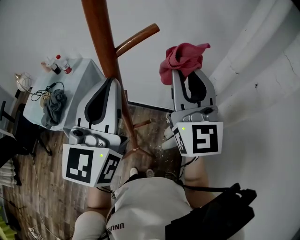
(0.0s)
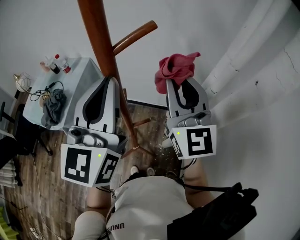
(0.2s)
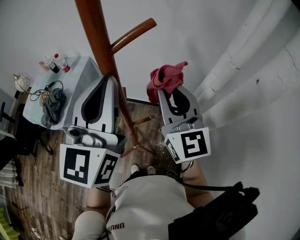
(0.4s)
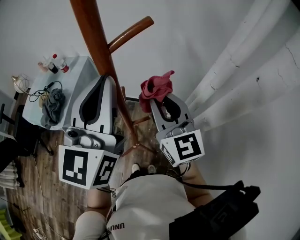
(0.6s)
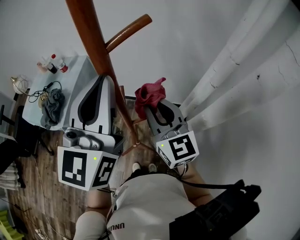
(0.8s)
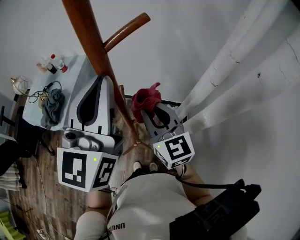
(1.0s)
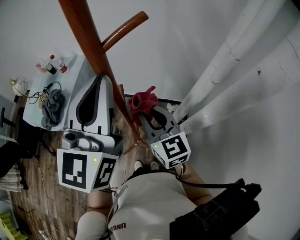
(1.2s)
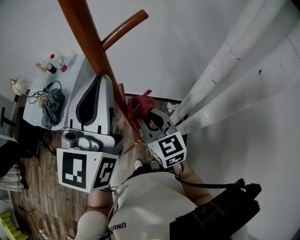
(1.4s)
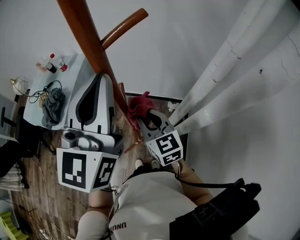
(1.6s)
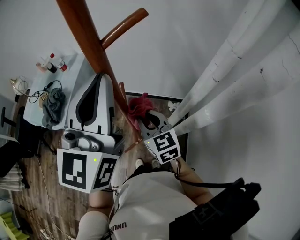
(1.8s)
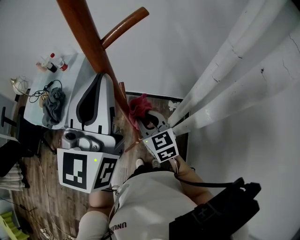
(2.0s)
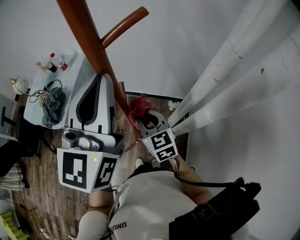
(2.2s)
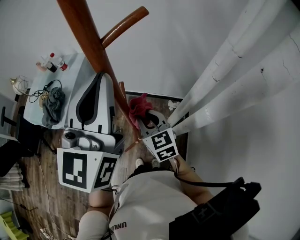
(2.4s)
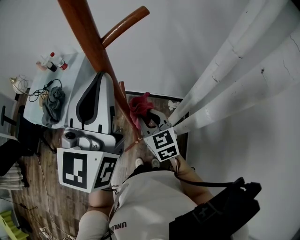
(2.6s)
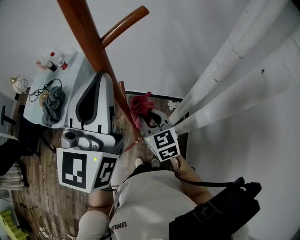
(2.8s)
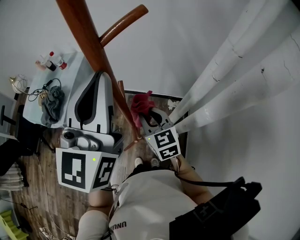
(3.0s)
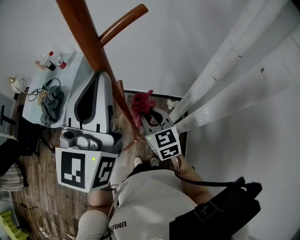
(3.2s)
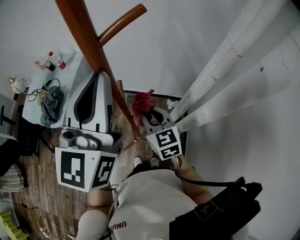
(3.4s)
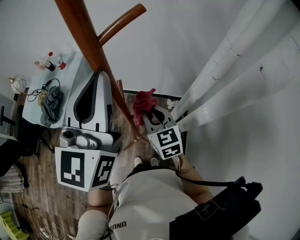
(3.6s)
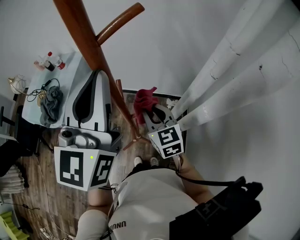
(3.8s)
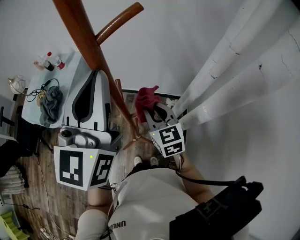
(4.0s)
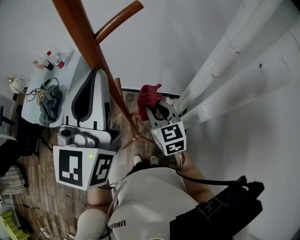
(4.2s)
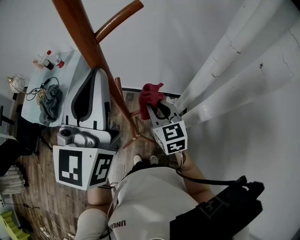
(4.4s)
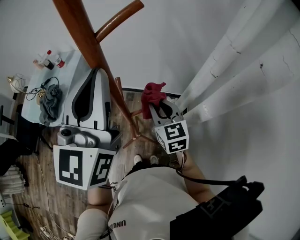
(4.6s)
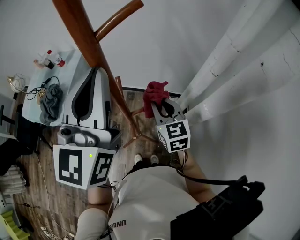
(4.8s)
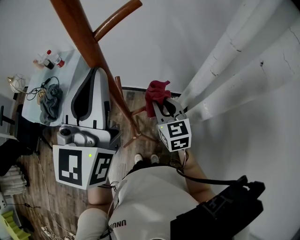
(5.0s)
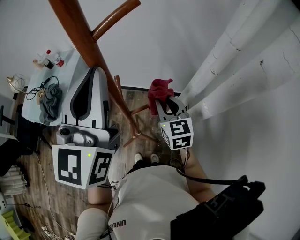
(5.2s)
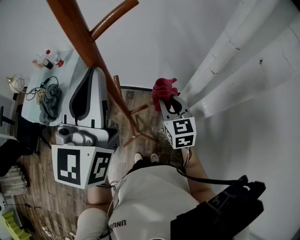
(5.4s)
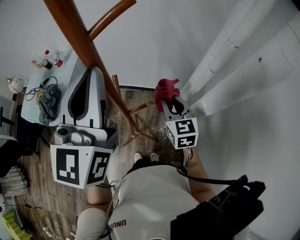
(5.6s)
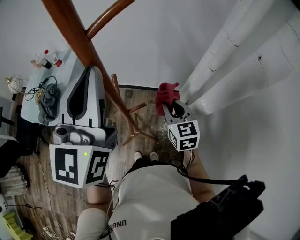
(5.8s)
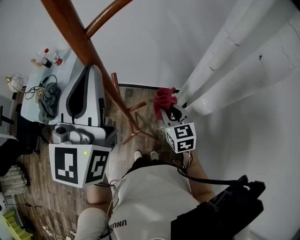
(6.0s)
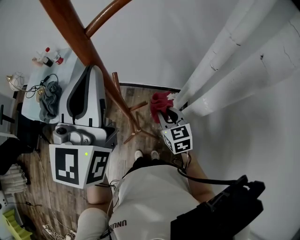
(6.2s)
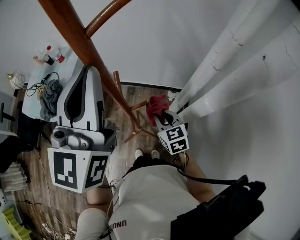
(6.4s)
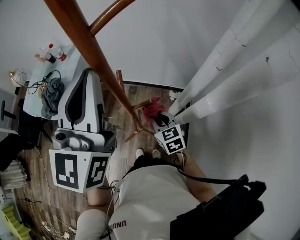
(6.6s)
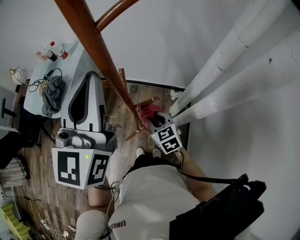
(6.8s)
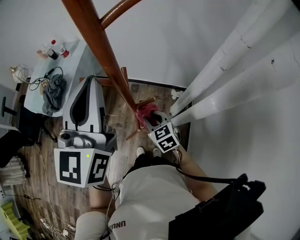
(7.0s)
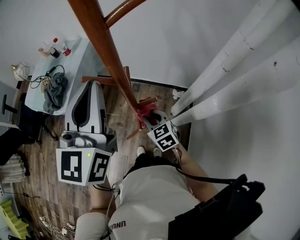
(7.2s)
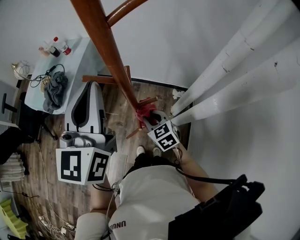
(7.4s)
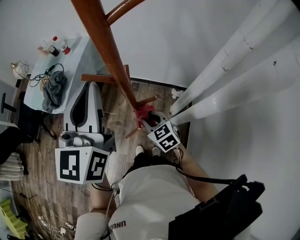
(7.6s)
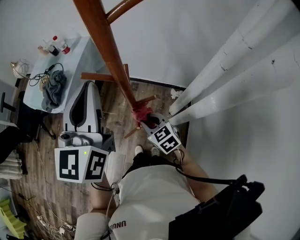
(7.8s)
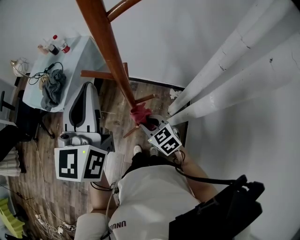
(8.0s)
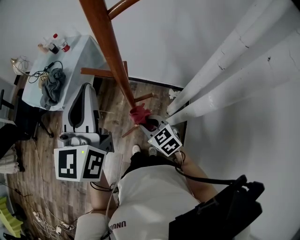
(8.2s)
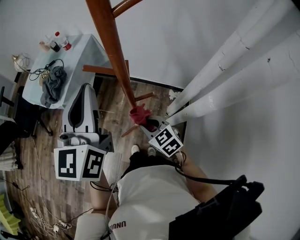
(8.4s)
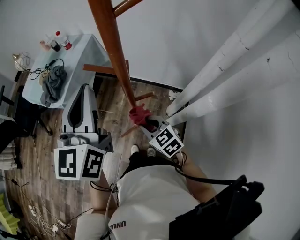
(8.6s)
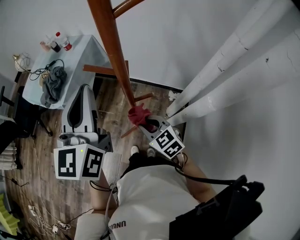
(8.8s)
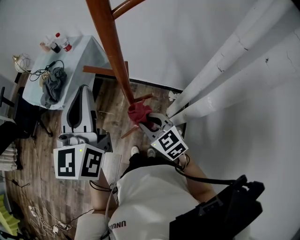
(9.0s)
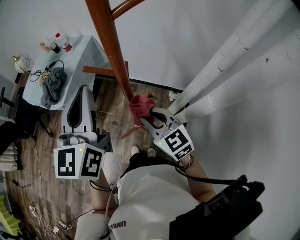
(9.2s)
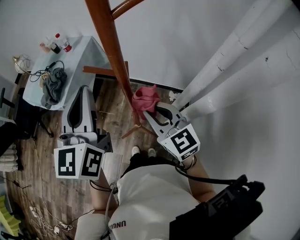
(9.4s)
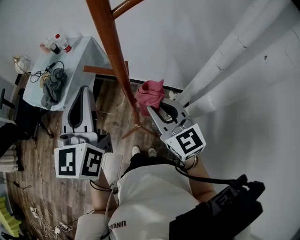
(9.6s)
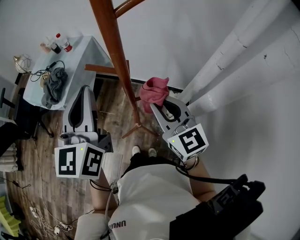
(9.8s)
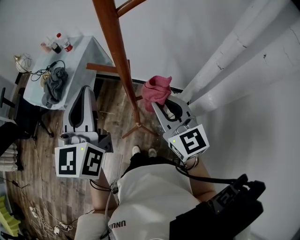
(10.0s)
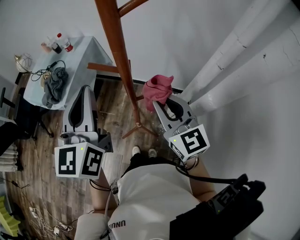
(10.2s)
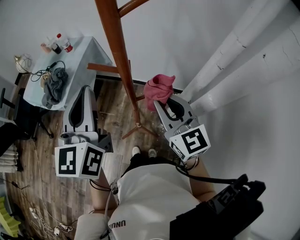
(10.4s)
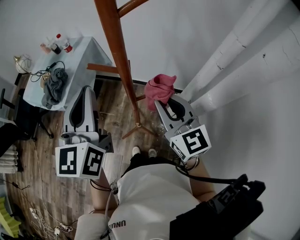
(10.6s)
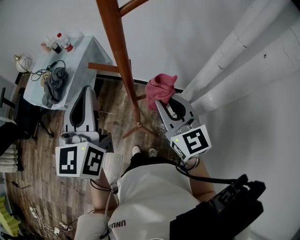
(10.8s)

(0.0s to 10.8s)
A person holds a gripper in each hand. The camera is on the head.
0.0s - 1.6s: The right gripper travels downward by approximately 25 cm, and points its fingers approximately 30 degrees further downward.
1.6s - 3.0s: There are only small adjustments of the grippers.
3.0s - 4.6s: The right gripper shifts roughly 5 cm to the right.
4.6s - 6.2s: The right gripper is displaced downward by roughly 10 cm.
6.2s - 7.8s: The right gripper moves to the left and downward, roughly 15 cm, and swivels approximately 30 degrees; the left gripper heads to the left and downward, covering some 10 cm.
7.8s - 9.2s: The right gripper travels upward by roughly 15 cm.
9.2s - 10.8s: The right gripper is displaced upward by approximately 10 cm, and swivels roughly 20 degrees.

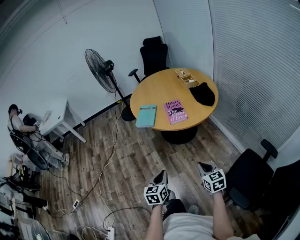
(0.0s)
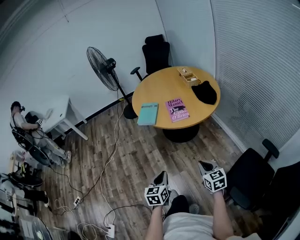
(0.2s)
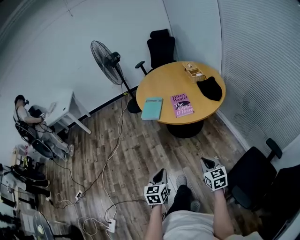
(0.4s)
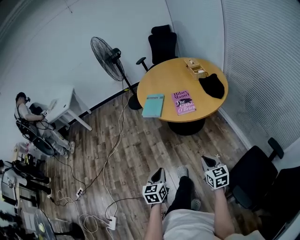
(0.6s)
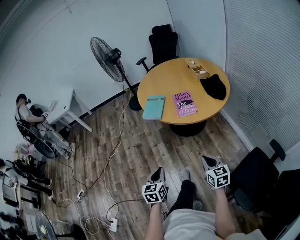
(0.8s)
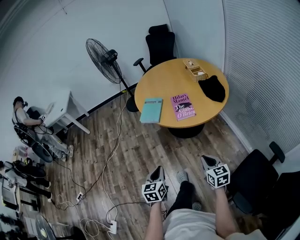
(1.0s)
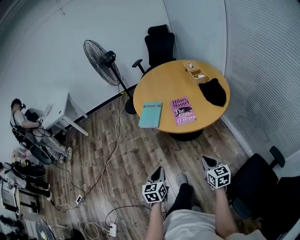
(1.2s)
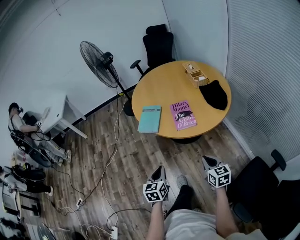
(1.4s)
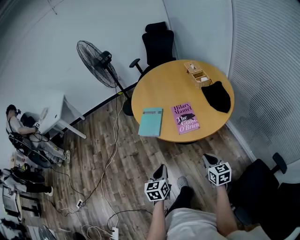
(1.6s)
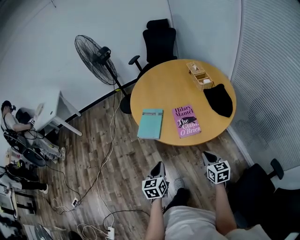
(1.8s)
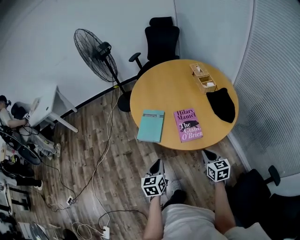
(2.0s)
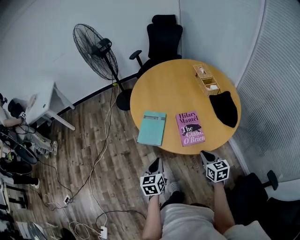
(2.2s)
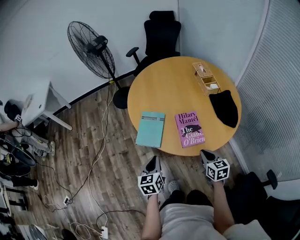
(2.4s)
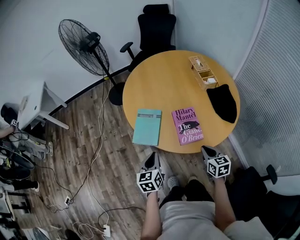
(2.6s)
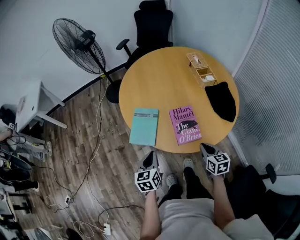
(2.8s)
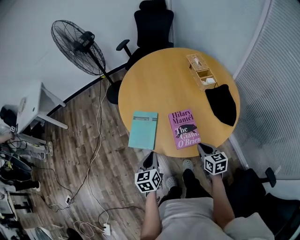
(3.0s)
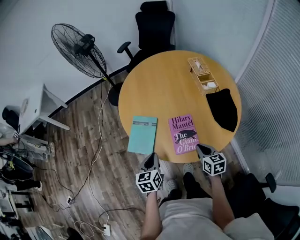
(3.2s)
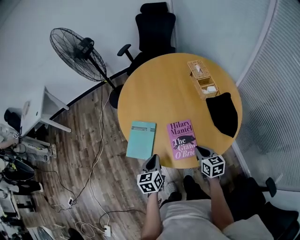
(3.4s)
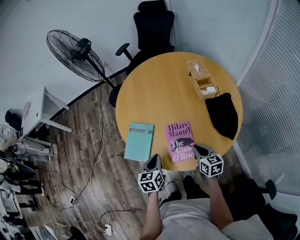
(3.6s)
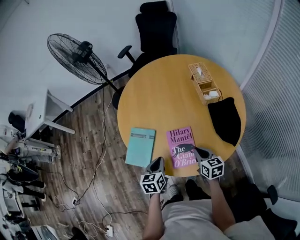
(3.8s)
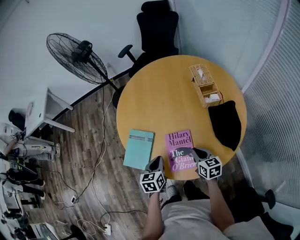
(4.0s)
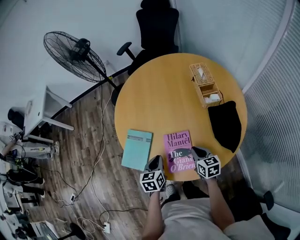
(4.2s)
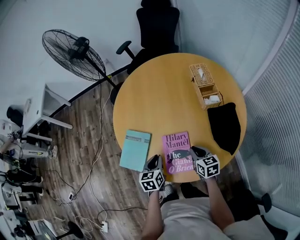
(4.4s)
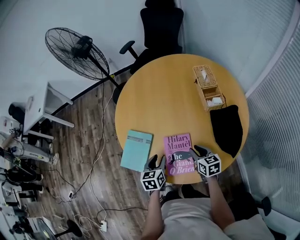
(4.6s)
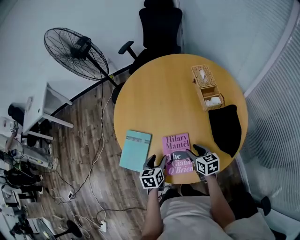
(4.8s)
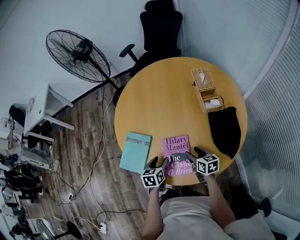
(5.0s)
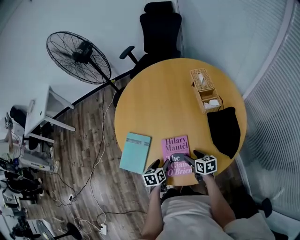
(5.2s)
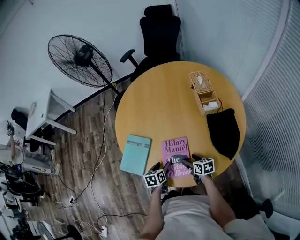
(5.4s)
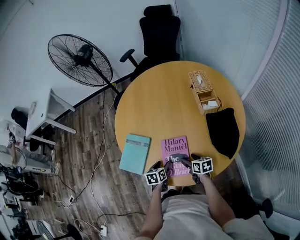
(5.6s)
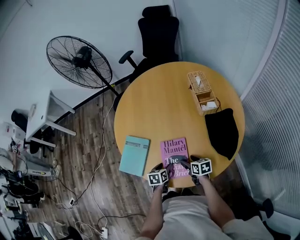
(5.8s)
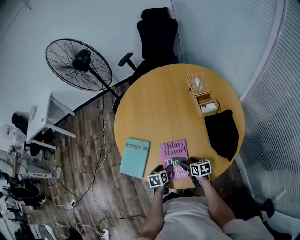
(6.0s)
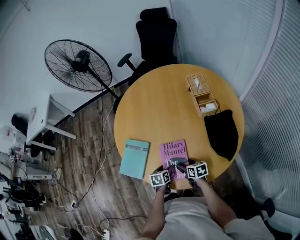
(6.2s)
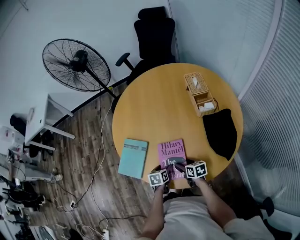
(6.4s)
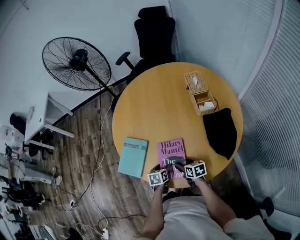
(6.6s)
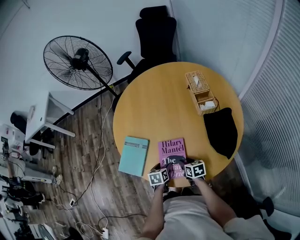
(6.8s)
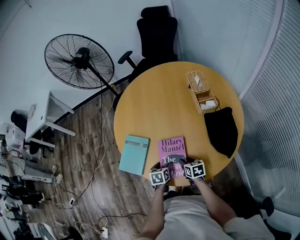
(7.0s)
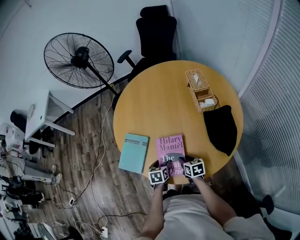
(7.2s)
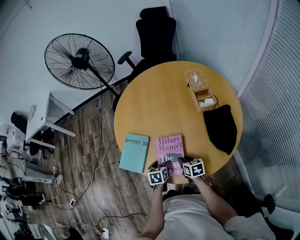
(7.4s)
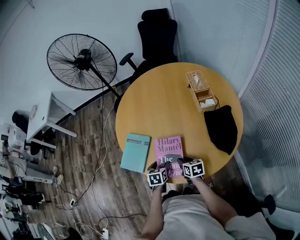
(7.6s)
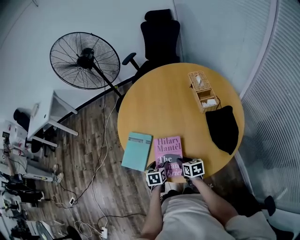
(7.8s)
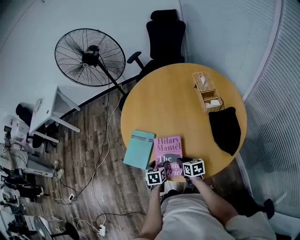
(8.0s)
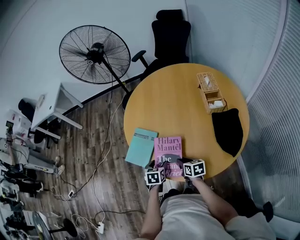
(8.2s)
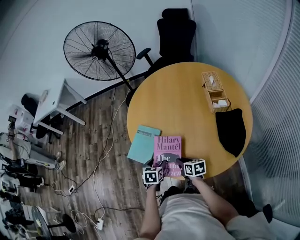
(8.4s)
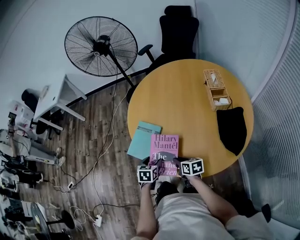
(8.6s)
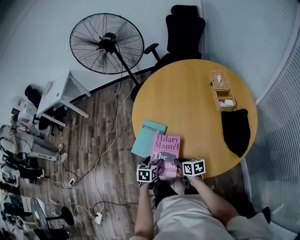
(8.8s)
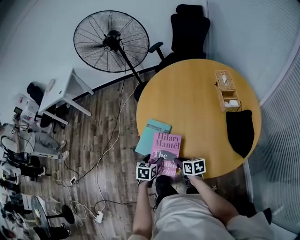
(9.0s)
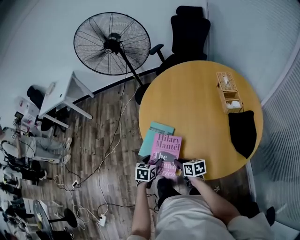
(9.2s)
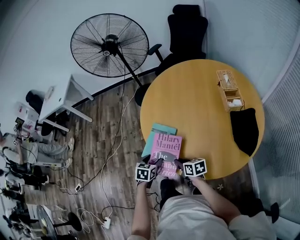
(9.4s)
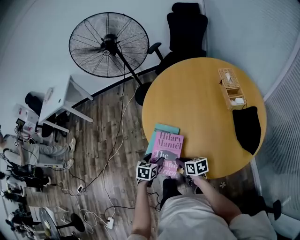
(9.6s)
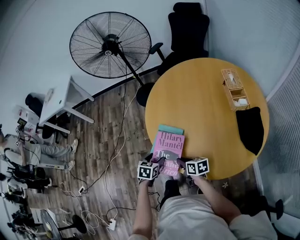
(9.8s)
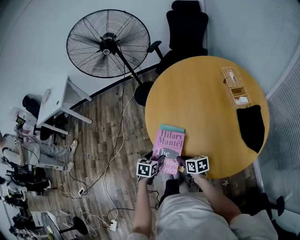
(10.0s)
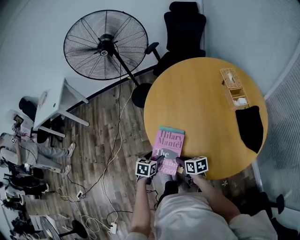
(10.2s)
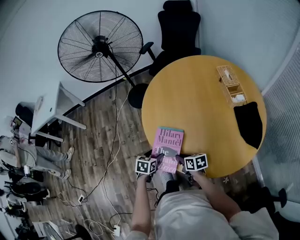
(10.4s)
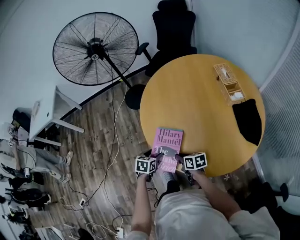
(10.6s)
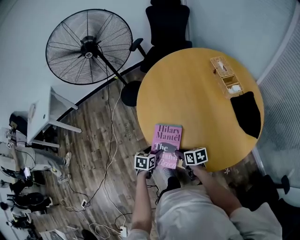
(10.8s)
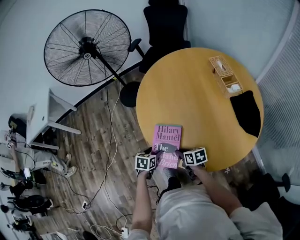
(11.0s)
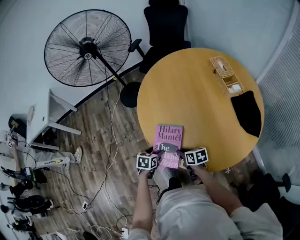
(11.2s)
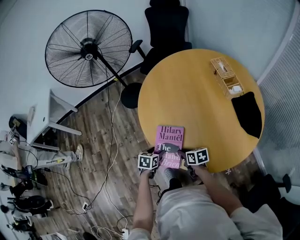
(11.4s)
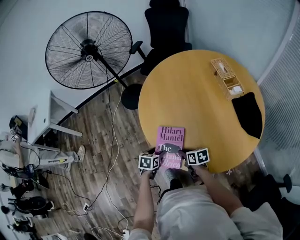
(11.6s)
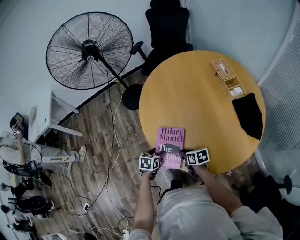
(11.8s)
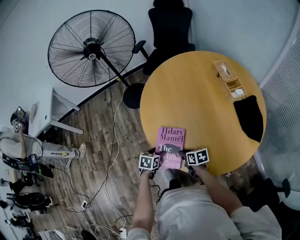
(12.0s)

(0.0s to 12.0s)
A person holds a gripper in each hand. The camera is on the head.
0.0s - 1.6s: The grippers both shift forward by some 20 cm.
1.6s - 3.0s: Both grippers travel together forward, approximately 20 cm.
3.0s - 4.4s: The right gripper shifts about 15 cm forward. Meanwhile the left gripper is displaced forward, to the right and downward by approximately 15 cm.
4.4s - 6.0s: Both grippers travel together downward, approximately 10 cm. The right gripper opens its fingers; the left gripper opens its fingers.
6.0s - 7.6s: The right gripper closes.
7.6s - 9.0s: Both grippers move to the left, roughly 15 cm.
9.0s - 10.4s: The two grippers go some 10 cm forward and to the left.
10.4s - 12.0s: The grippers make only small movements.

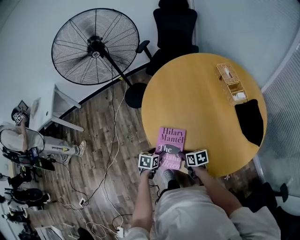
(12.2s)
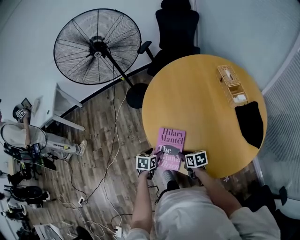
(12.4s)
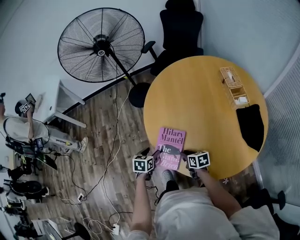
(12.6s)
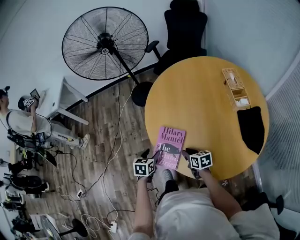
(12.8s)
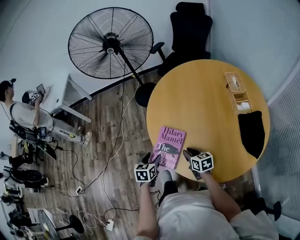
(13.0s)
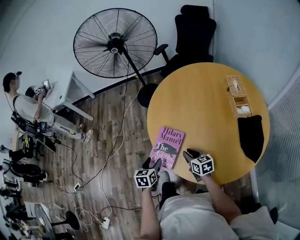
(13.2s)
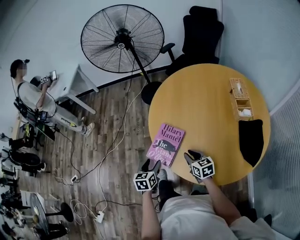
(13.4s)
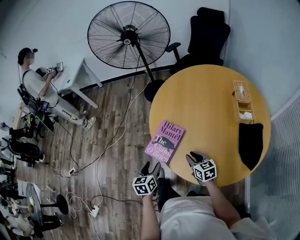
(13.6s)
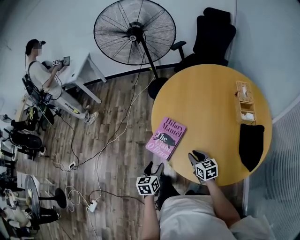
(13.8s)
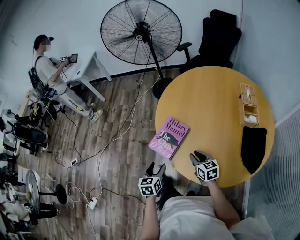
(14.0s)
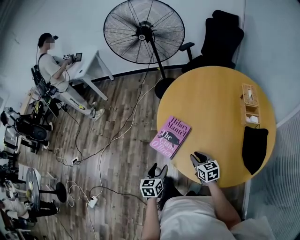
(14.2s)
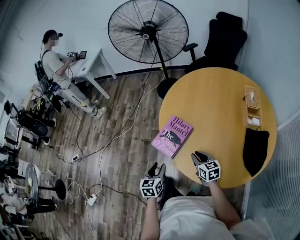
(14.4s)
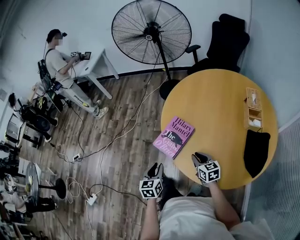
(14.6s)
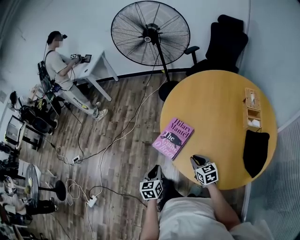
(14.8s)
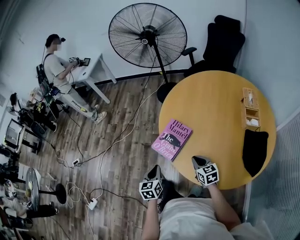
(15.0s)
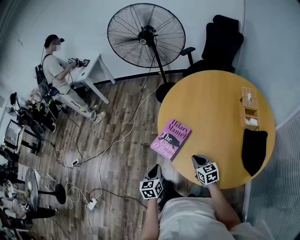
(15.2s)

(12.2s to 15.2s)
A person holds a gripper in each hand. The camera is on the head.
12.2s - 13.8s: The left gripper goes roughly 20 cm backward and upward, and swivels some 40 degrees. Meanwhile the right gripper moves to the right, upward and backward, approximately 15 cm, and changes its angle by about 30 degrees.
13.8s - 15.2s: The left gripper closes its fingers.
